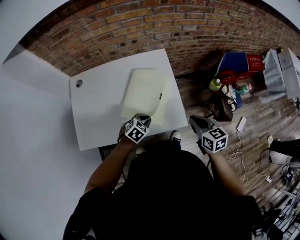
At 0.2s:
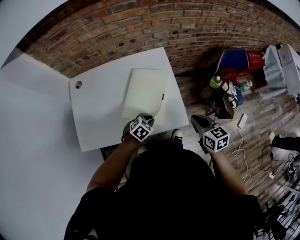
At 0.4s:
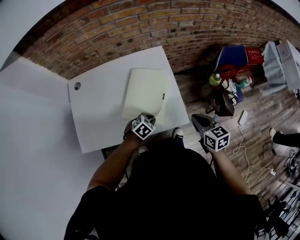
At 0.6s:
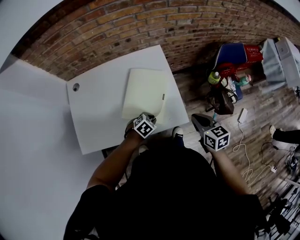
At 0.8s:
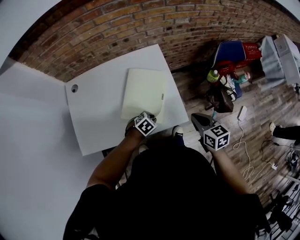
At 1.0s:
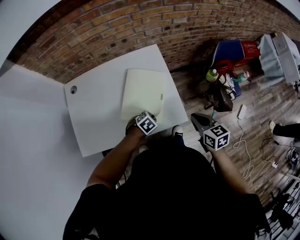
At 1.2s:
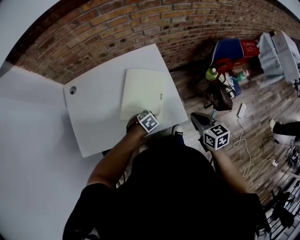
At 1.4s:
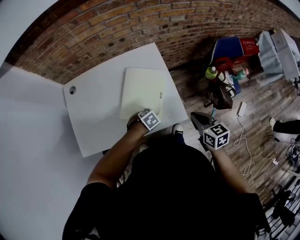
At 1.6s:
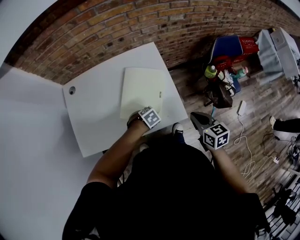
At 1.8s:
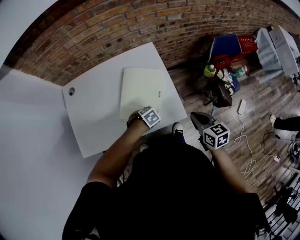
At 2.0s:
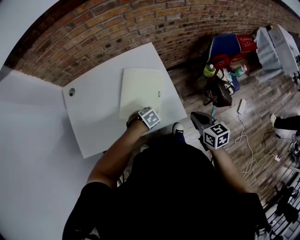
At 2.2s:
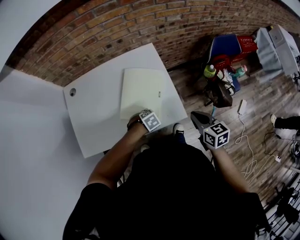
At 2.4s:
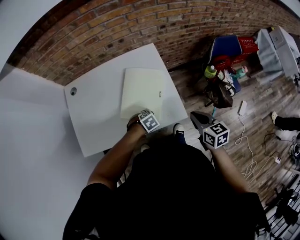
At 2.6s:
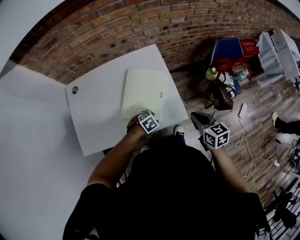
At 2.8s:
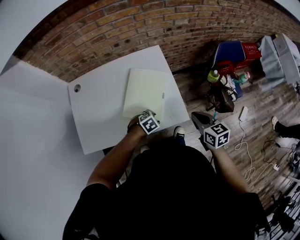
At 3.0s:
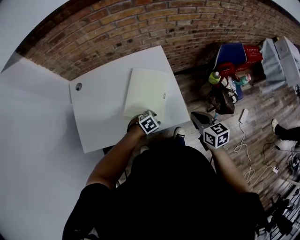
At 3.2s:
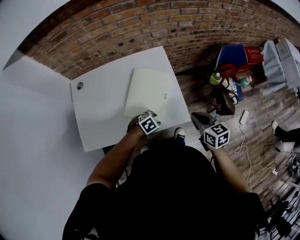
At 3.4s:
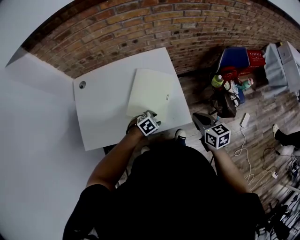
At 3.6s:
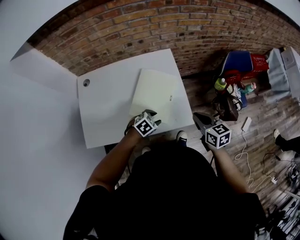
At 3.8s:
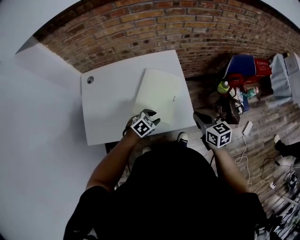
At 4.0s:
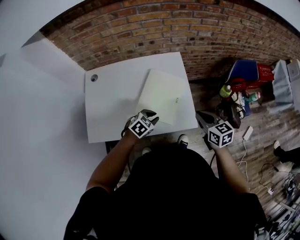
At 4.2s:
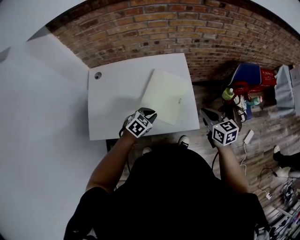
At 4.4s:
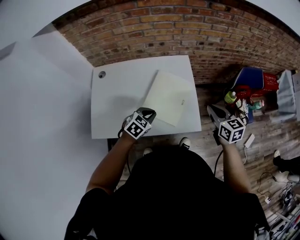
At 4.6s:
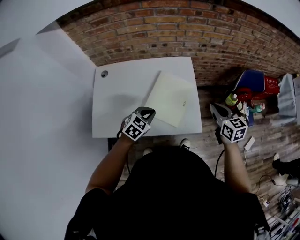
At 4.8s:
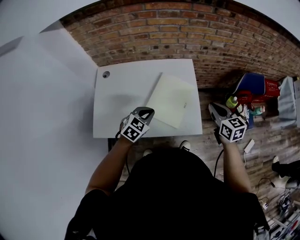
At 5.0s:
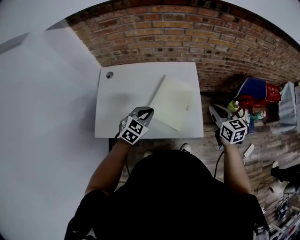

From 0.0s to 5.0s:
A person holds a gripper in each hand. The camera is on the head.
From 0.0s to 1.6s: The left gripper shifts some 10 cm downward, and swivels approximately 30 degrees.
From 1.6s to 3.4s: The left gripper opens.
From 3.4s to 5.0s: The left gripper travels upward and to the left by about 20 cm, rotates about 40 degrees, and closes. Meanwhile the right gripper heads upward and forward, covering roughly 10 cm.

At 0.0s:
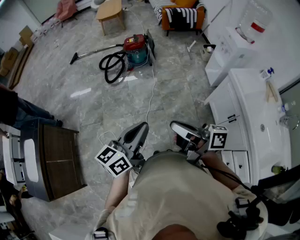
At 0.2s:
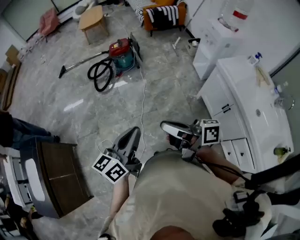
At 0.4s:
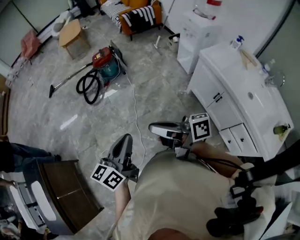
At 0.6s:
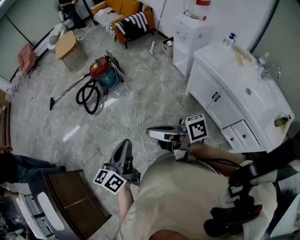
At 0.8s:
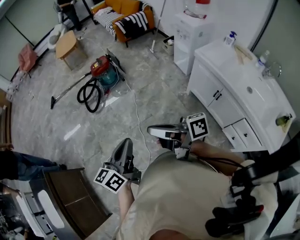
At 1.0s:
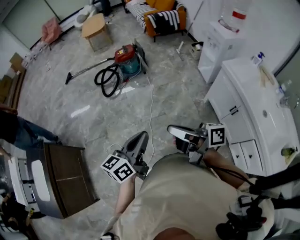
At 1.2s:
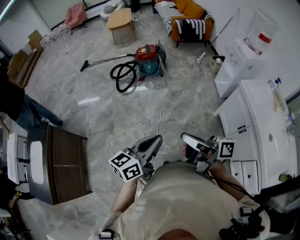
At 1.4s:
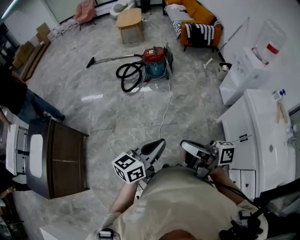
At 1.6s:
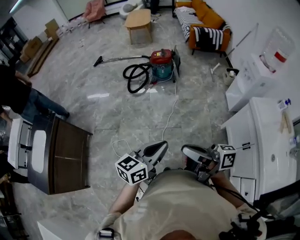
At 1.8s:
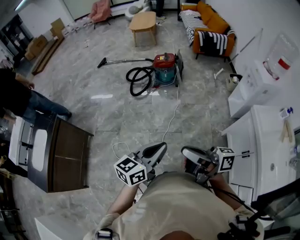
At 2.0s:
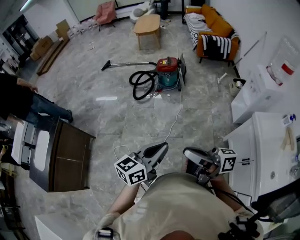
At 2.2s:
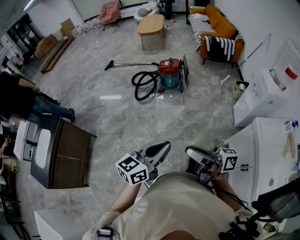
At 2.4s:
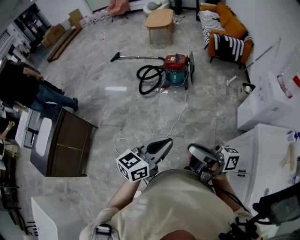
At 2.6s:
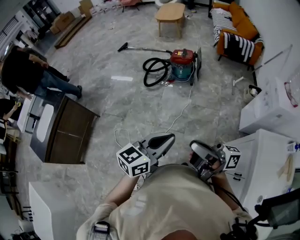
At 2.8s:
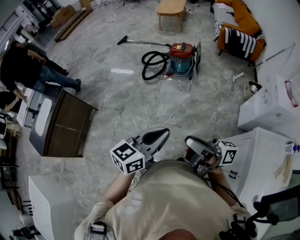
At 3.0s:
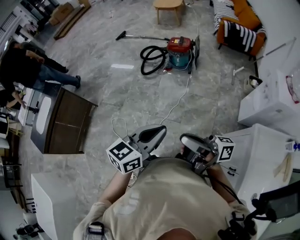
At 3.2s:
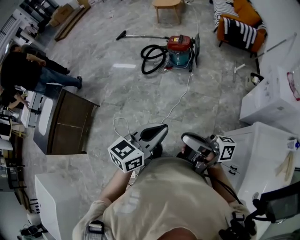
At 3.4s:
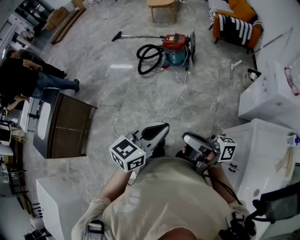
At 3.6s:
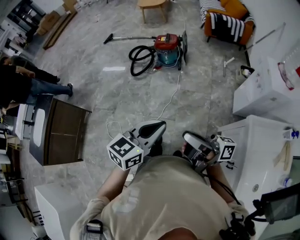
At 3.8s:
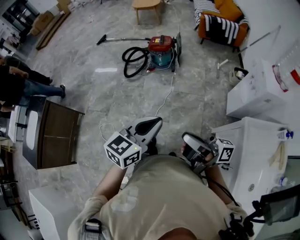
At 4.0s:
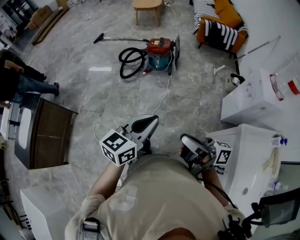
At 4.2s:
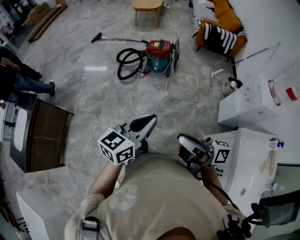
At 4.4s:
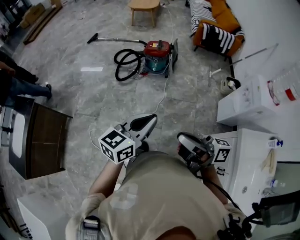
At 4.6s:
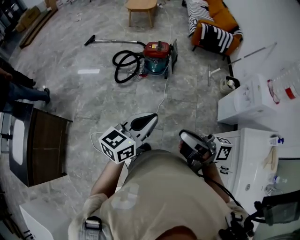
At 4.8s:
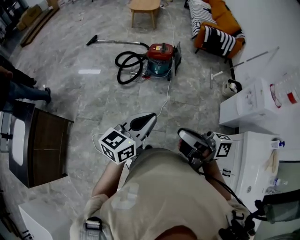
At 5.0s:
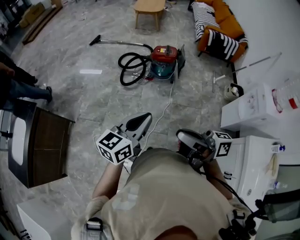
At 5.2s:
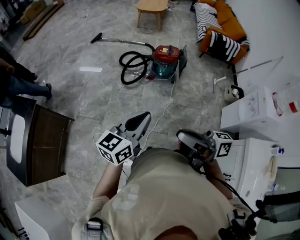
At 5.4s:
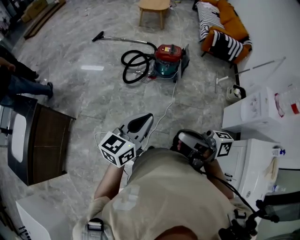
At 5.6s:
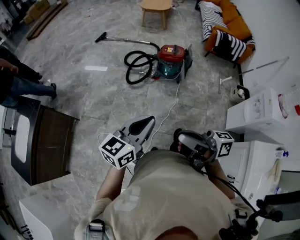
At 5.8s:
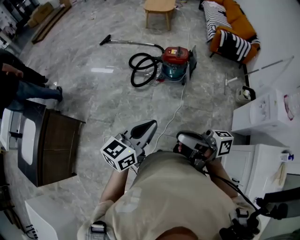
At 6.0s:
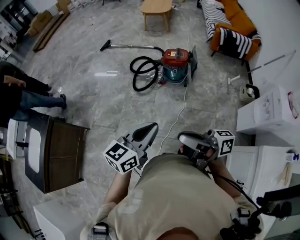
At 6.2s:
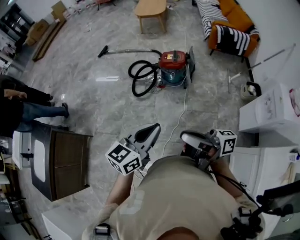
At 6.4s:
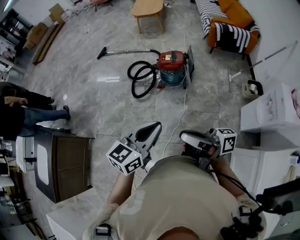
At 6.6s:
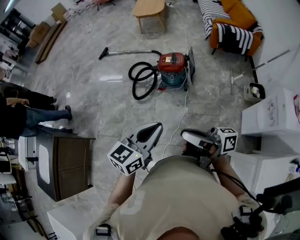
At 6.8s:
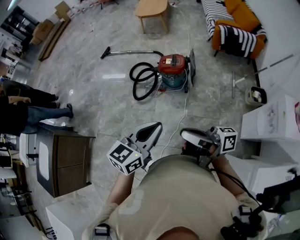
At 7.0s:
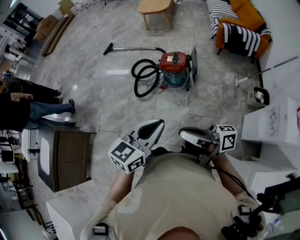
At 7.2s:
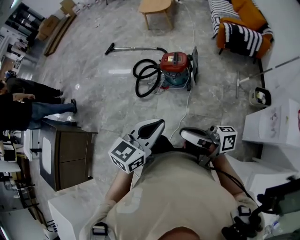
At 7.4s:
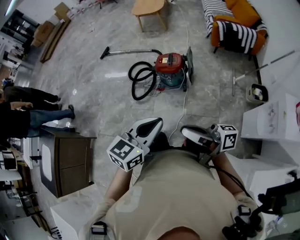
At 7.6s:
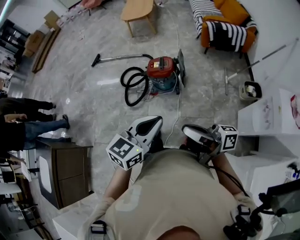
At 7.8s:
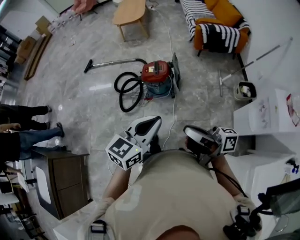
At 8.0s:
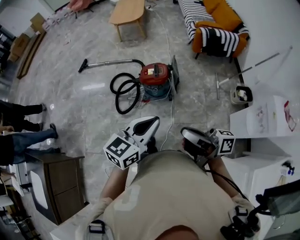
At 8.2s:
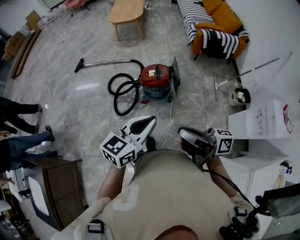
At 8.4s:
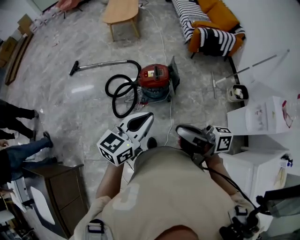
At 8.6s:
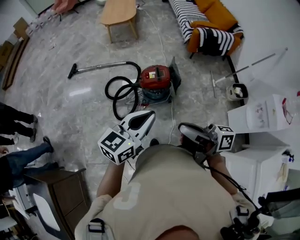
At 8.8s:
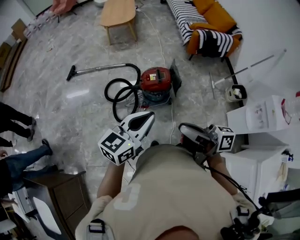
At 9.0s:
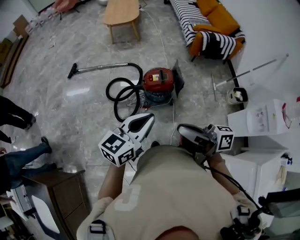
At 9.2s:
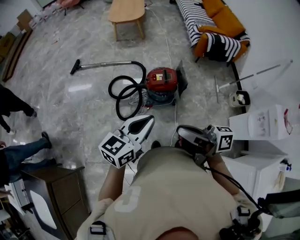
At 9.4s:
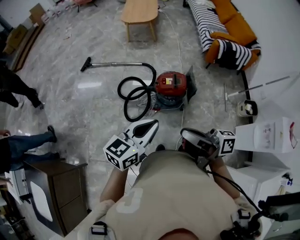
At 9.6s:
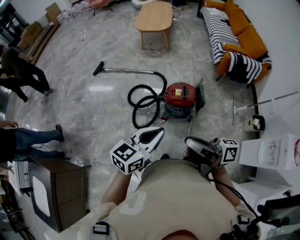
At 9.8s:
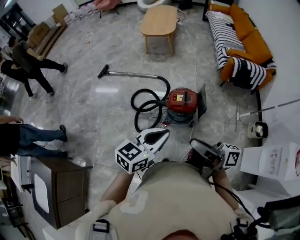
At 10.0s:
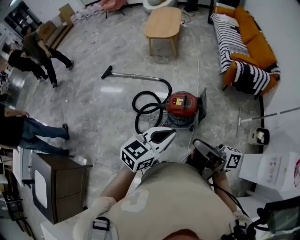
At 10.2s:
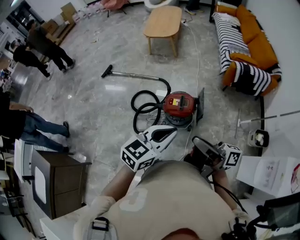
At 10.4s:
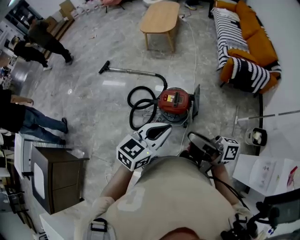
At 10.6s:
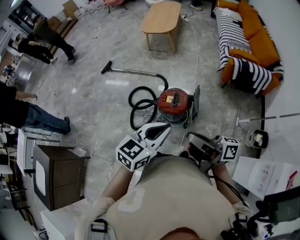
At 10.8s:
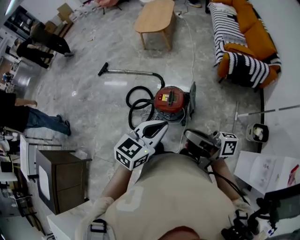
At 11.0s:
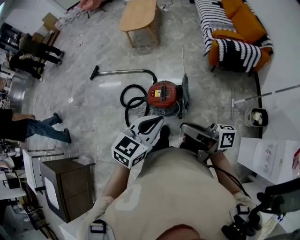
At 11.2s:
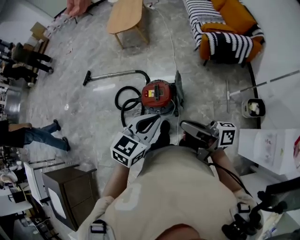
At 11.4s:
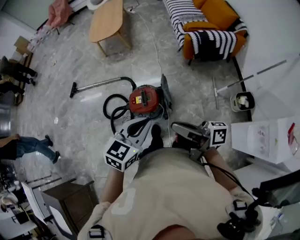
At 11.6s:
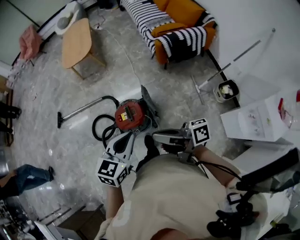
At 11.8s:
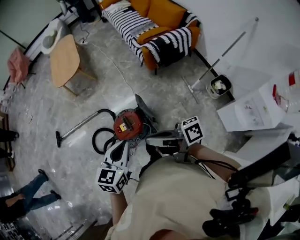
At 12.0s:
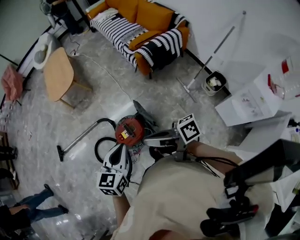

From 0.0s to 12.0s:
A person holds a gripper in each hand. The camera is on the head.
From 0.0s to 1.6s: The right gripper moves to the left, some 5 cm.
From 1.6s to 3.0s: Both grippers travel together to the right and forward, approximately 20 cm. The right gripper swivels some 20 degrees.
From 3.0s to 4.4s: Both grippers travel together forward, approximately 10 cm.
From 4.4s to 6.0s: The two grippers go some 15 cm forward and to the left.
From 6.0s to 7.6s: The two grippers go approximately 30 cm to the right and forward.
From 7.6s to 9.0s: The two grippers go some 30 cm to the left and forward.
From 9.0s to 10.4s: The grippers both shift to the right and forward by roughly 25 cm.
From 10.4s to 12.0s: The two grippers go some 15 cm forward.

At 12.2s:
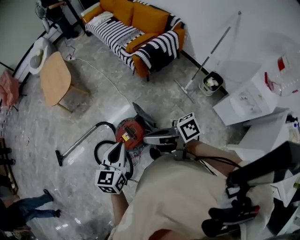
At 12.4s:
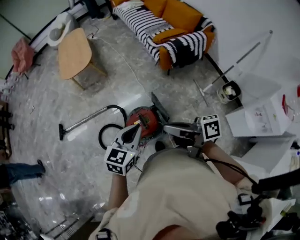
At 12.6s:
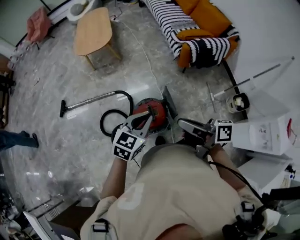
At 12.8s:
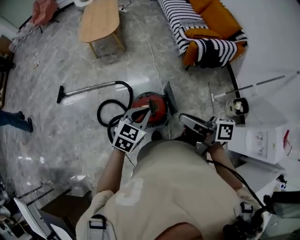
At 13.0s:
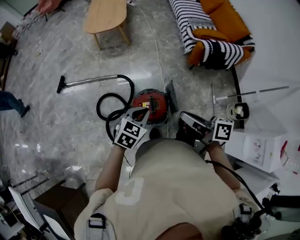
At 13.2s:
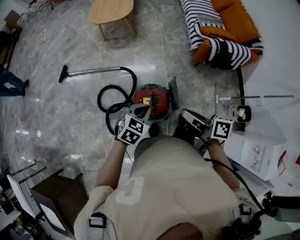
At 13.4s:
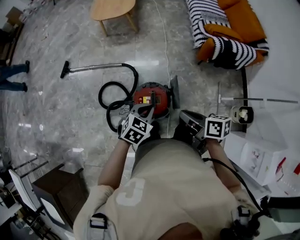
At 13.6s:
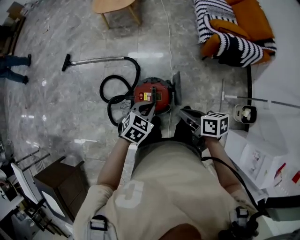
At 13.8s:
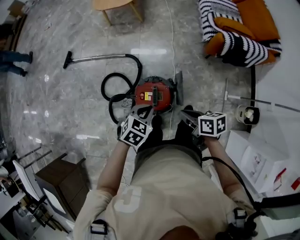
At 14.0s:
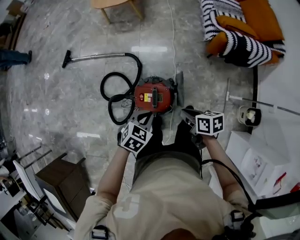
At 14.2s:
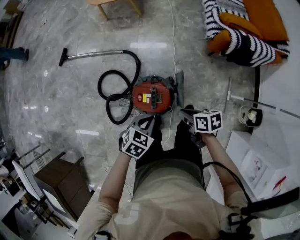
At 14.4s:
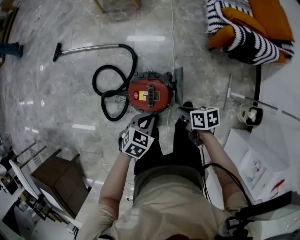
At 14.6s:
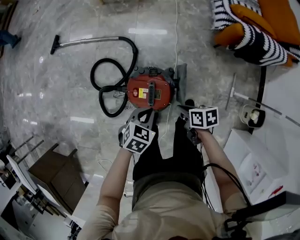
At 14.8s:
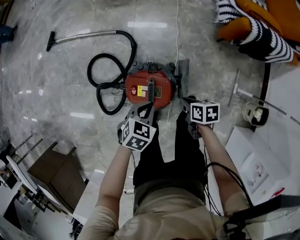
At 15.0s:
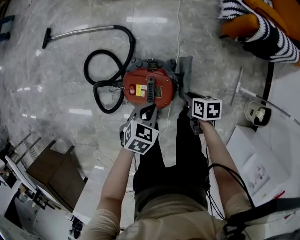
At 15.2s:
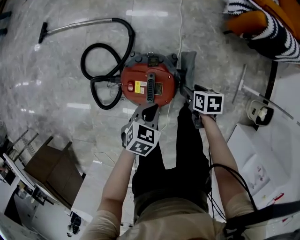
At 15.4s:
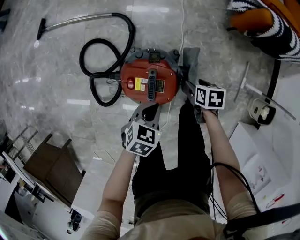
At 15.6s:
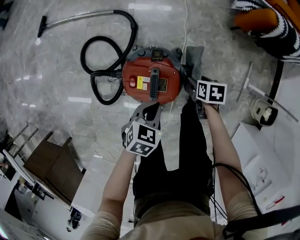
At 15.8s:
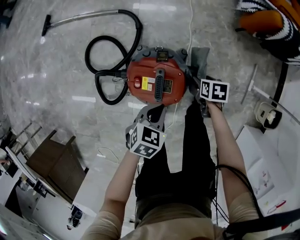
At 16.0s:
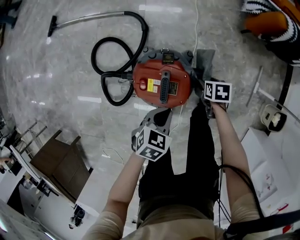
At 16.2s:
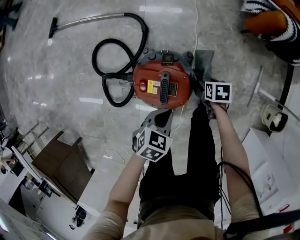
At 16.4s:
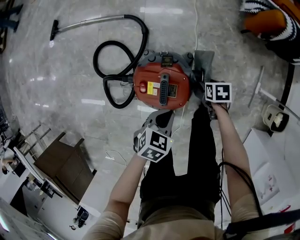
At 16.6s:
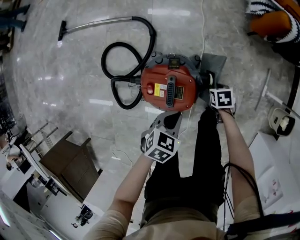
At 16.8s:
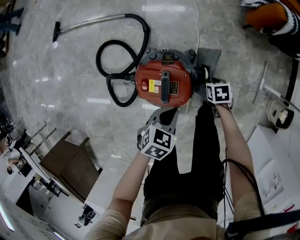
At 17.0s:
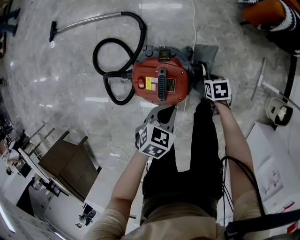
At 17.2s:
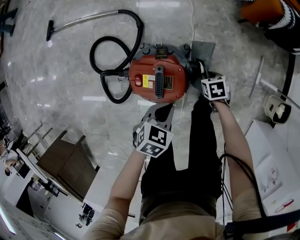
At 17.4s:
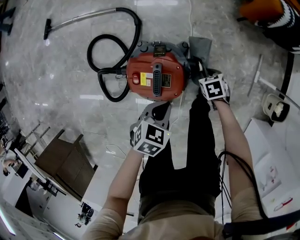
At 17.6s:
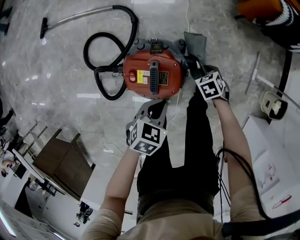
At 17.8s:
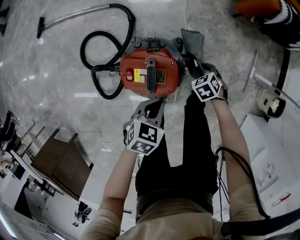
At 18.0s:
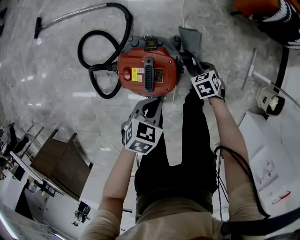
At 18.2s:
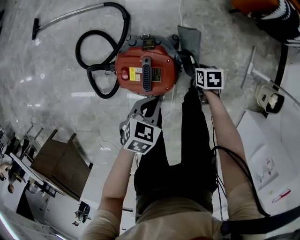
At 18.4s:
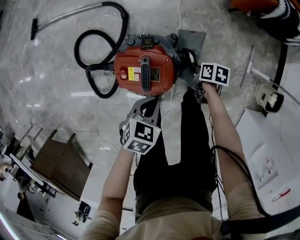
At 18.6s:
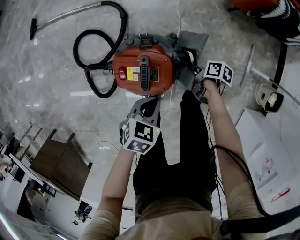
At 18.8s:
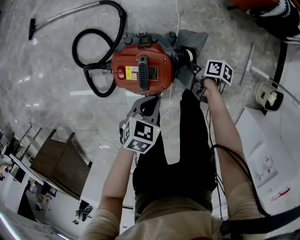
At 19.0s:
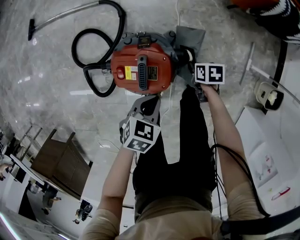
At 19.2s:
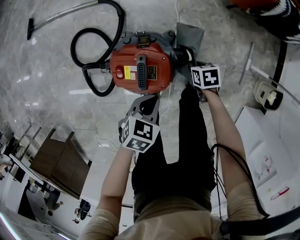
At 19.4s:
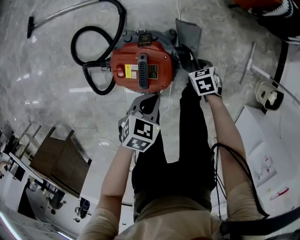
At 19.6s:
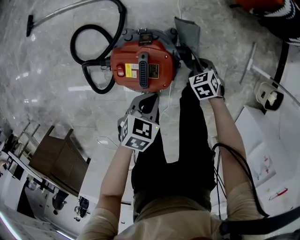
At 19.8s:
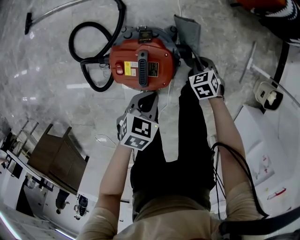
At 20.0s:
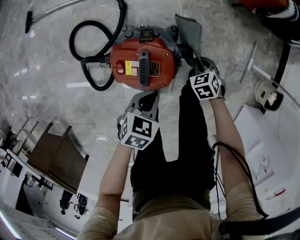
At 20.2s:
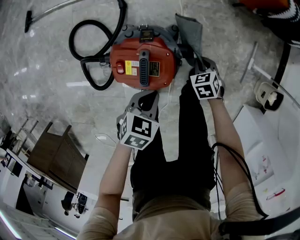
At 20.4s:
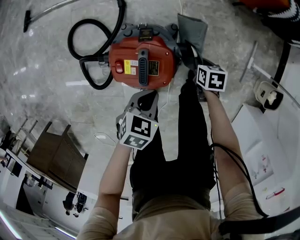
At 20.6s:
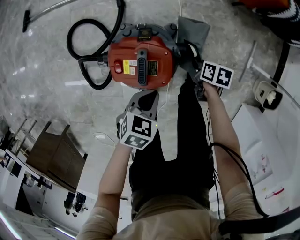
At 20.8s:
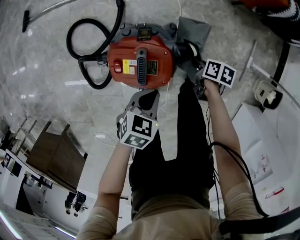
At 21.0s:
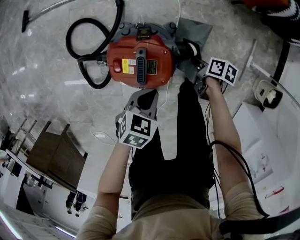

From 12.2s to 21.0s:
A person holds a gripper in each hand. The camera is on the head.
From 12.2s to 13.6s: Both grippers move downward and forward, some 20 cm. The left gripper turns by some 30 degrees. Meanwhile the right gripper angles its fingers downward, by roughly 40 degrees.
From 13.6s to 15.2s: The grippers both shift downward by about 35 cm. The right gripper tilts its fingers about 30 degrees downward, and opens.
From 15.2s to 16.6s: The right gripper heads downward, covering about 10 cm.
From 16.6s to 18.0s: The right gripper rotates about 20 degrees.
From 19.6s to 21.0s: The right gripper twists approximately 70 degrees clockwise, seen from behind.
